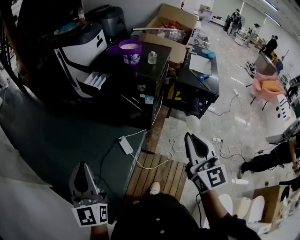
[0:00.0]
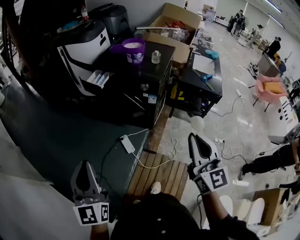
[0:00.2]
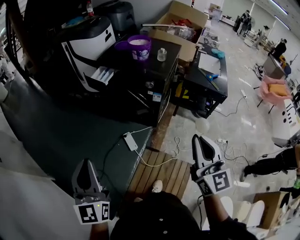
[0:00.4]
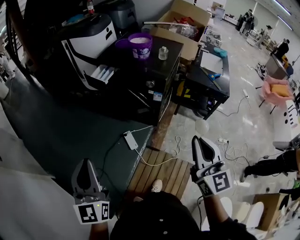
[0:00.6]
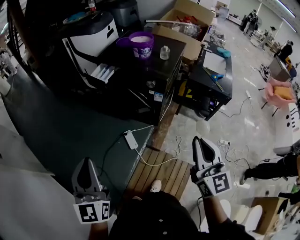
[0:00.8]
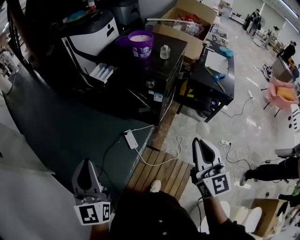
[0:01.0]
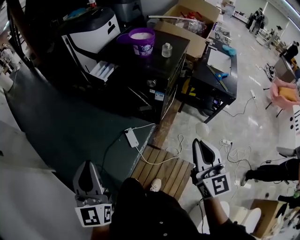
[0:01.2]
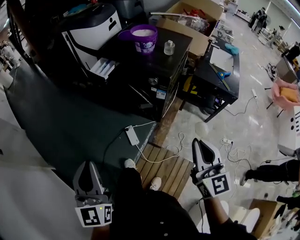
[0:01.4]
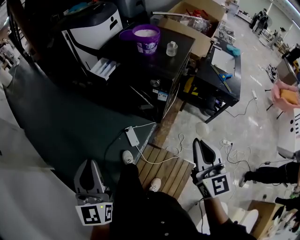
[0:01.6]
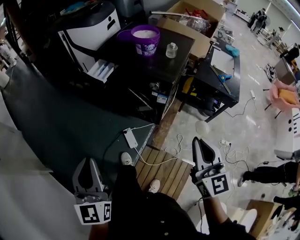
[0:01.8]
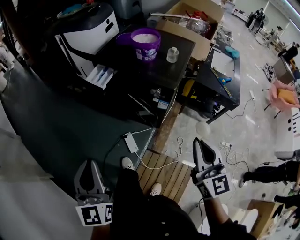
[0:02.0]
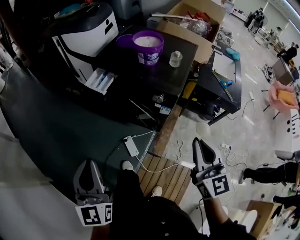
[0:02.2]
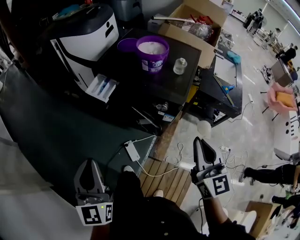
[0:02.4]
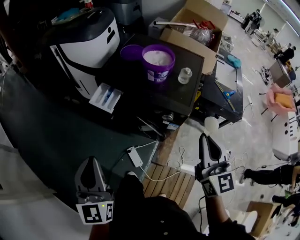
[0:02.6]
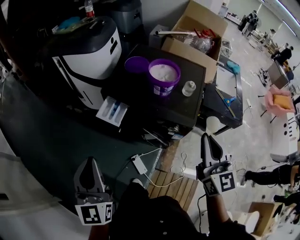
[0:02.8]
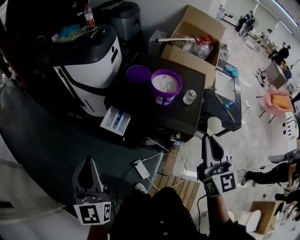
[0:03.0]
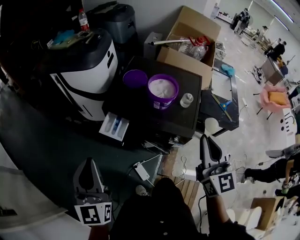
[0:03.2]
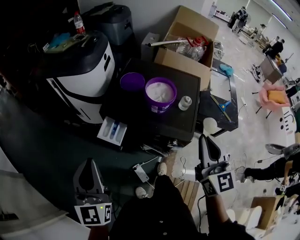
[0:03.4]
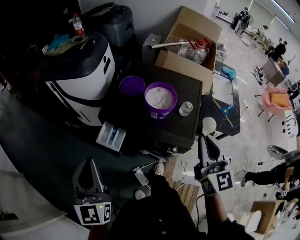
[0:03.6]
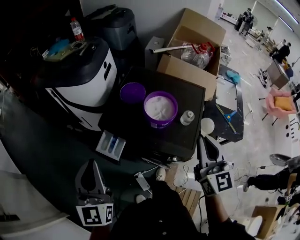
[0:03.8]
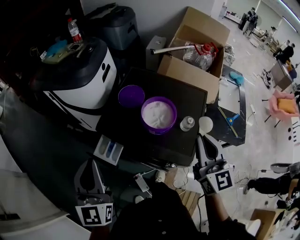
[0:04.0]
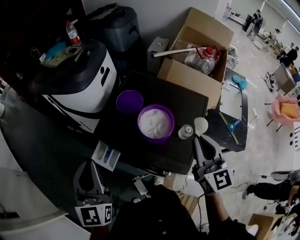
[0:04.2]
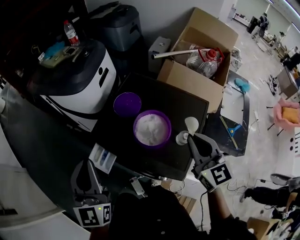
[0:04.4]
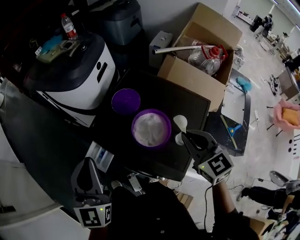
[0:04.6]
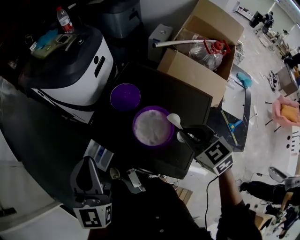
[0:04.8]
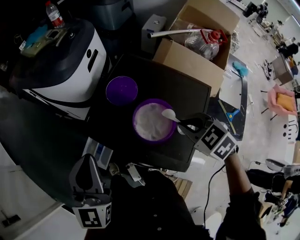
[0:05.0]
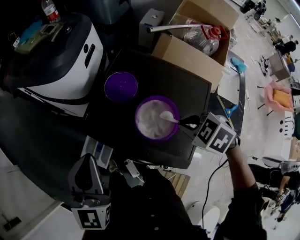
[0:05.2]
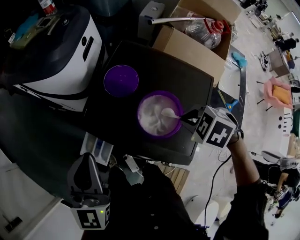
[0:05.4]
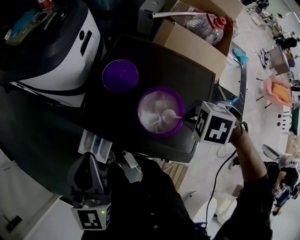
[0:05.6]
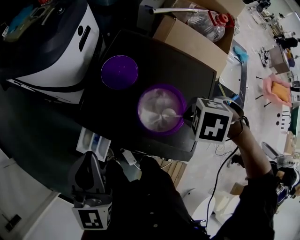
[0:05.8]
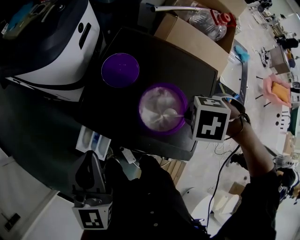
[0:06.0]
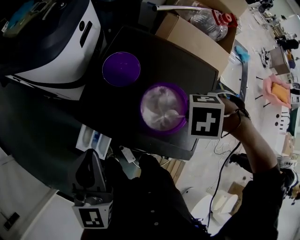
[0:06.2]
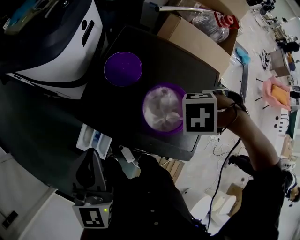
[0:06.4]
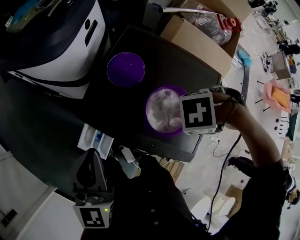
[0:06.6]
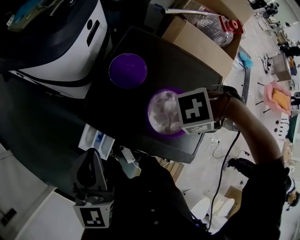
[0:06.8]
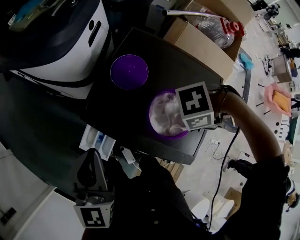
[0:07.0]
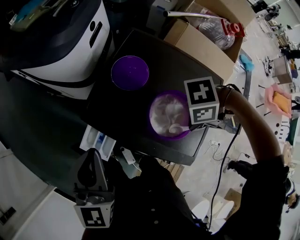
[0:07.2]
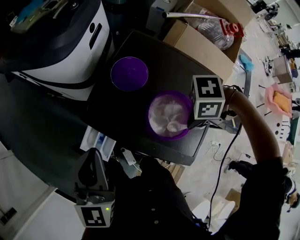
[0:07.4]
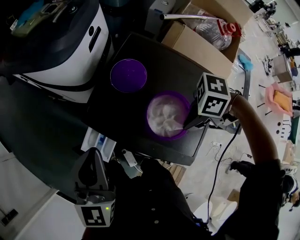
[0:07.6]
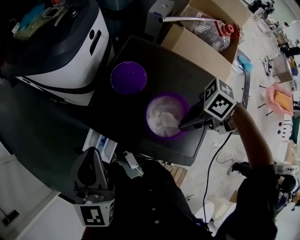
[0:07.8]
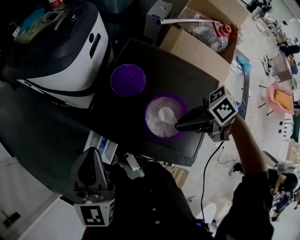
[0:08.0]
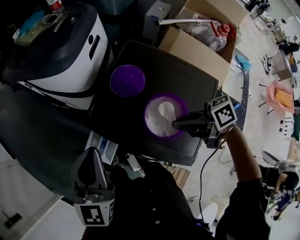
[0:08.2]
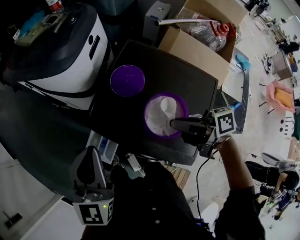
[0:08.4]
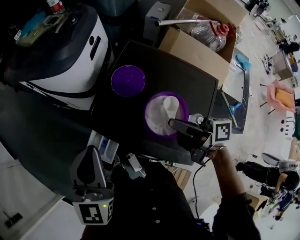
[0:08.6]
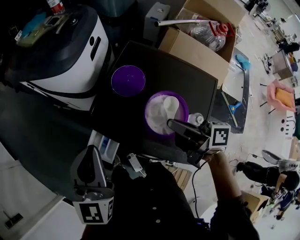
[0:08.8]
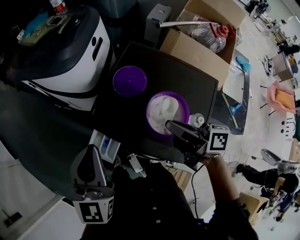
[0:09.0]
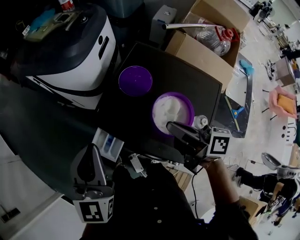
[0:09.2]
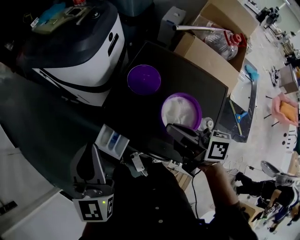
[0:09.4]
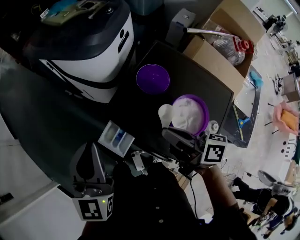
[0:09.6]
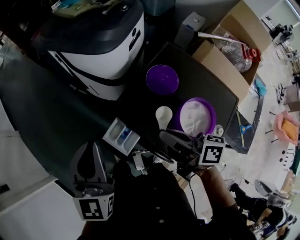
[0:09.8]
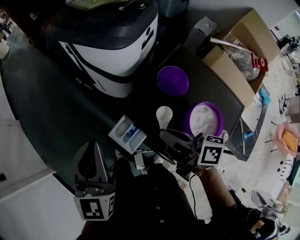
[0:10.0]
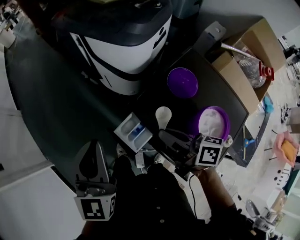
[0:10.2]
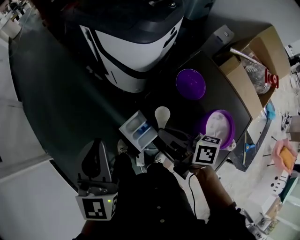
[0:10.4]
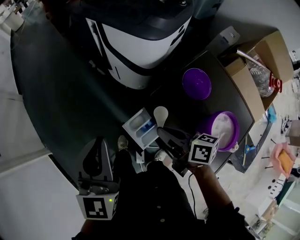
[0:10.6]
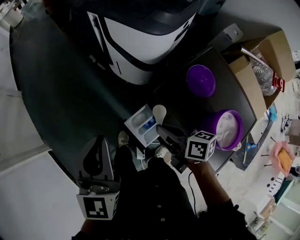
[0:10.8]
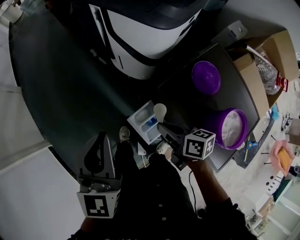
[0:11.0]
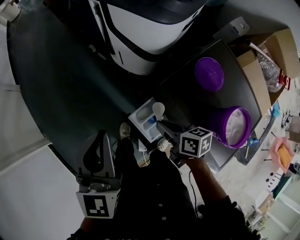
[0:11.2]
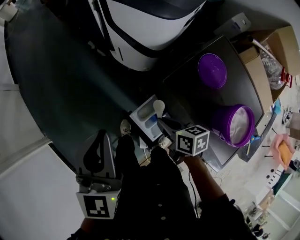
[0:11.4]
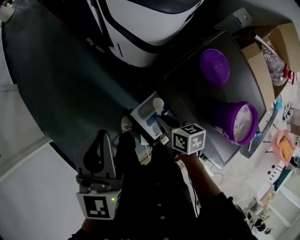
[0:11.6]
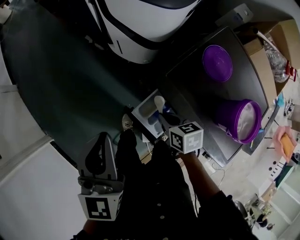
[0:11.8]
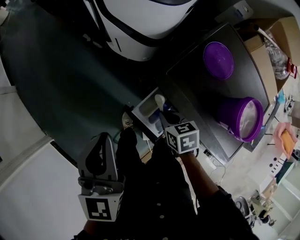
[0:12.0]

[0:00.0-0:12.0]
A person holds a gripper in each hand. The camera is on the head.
0:00.0 to 0:01.6: Both grippers travel together forward, about 10 cm.
0:01.6 to 0:03.0: The two grippers go roughly 30 cm forward.
0:03.0 to 0:04.4: The right gripper is displaced forward by some 25 cm; the left gripper travels forward and to the right by roughly 25 cm.
0:04.4 to 0:06.0: The left gripper travels downward by some 10 cm, while the right gripper heads downward, covering about 15 cm, and tilts its fingers some 70 degrees downward.
0:06.0 to 0:07.6: The right gripper points its fingers some 40 degrees further upward.
0:07.6 to 0:09.0: The right gripper travels upward by some 5 cm, and tips its fingers upward by about 40 degrees.
0:09.0 to 0:10.4: Both grippers move to the left, approximately 20 cm. The left gripper rotates about 20 degrees. Meanwhile the right gripper changes its angle by approximately 20 degrees.
0:10.4 to 0:12.0: The left gripper goes roughly 10 cm downward; the right gripper is displaced downward by about 20 cm, and tips its fingers downward by roughly 40 degrees.

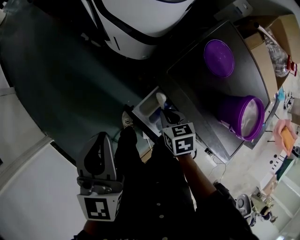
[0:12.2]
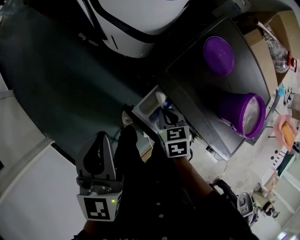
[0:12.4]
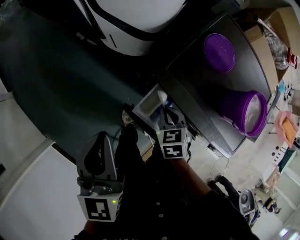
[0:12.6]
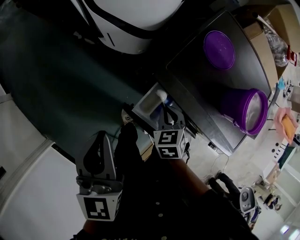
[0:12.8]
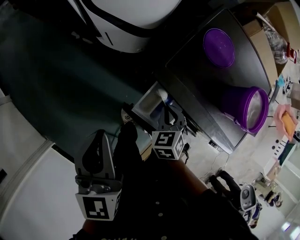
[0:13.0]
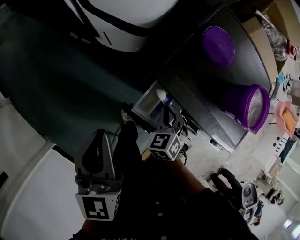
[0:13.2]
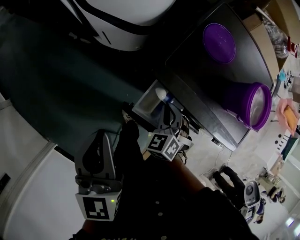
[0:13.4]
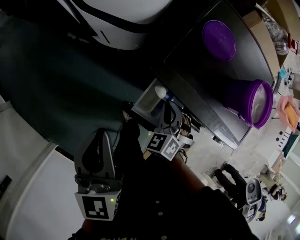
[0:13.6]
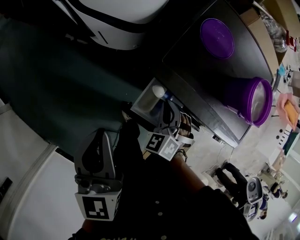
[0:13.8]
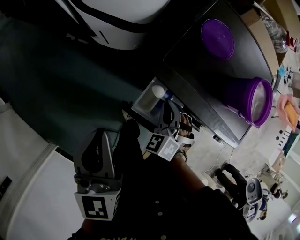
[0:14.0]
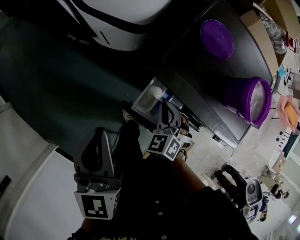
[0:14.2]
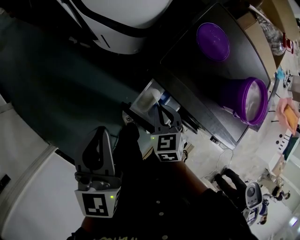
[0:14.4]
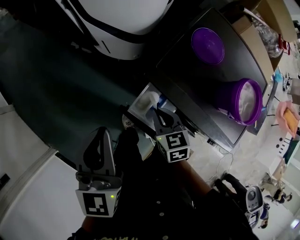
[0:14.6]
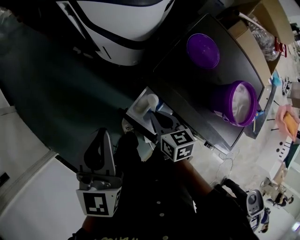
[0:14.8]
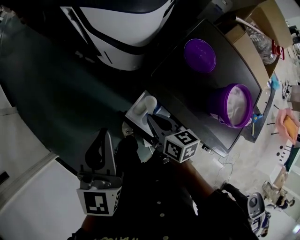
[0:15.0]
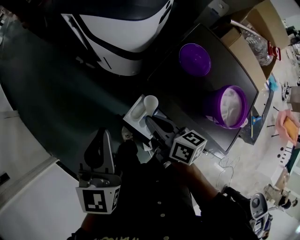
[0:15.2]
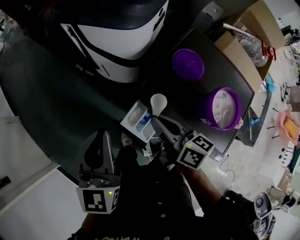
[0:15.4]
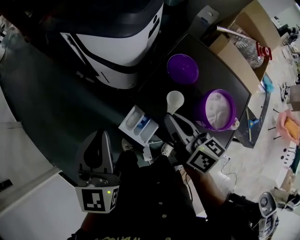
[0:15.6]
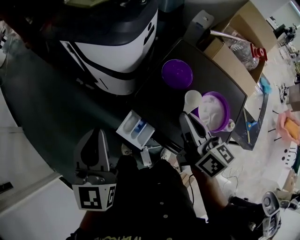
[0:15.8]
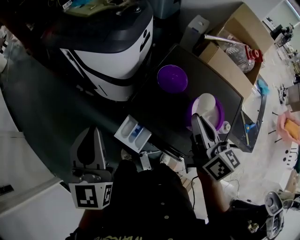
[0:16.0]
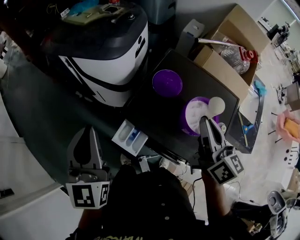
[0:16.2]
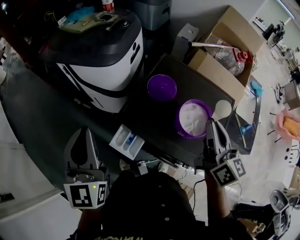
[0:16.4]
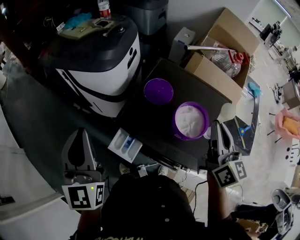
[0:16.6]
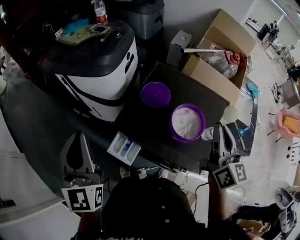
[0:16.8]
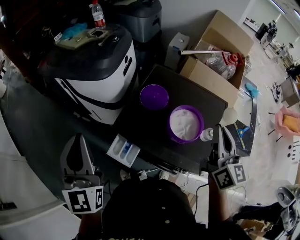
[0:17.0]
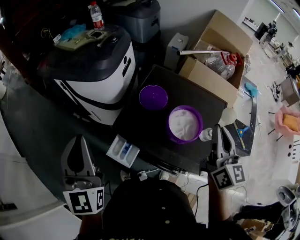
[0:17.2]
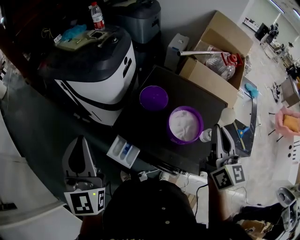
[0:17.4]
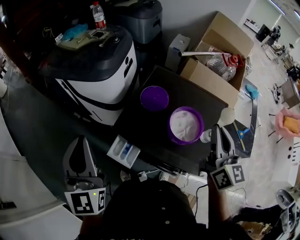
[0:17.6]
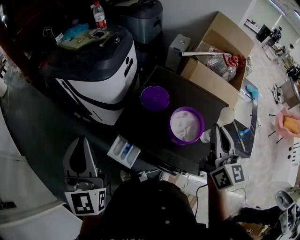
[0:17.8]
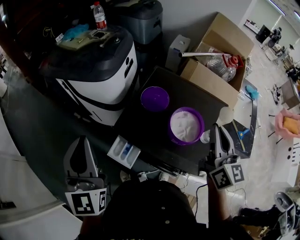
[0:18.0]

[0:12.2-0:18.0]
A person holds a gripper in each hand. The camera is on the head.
0:12.2 to 0:13.6: The right gripper turns by some 40 degrees.
0:13.6 to 0:15.0: Both grippers travel together upward, about 5 cm. The right gripper rotates about 70 degrees.
0:15.0 to 0:16.6: The left gripper goes approximately 15 cm upward and to the right; the right gripper heads to the right and upward, covering approximately 40 cm, and angles its fingers upward, by some 30 degrees.
0:16.6 to 0:18.0: The grippers make only small movements.

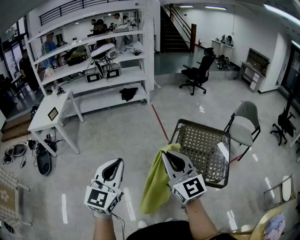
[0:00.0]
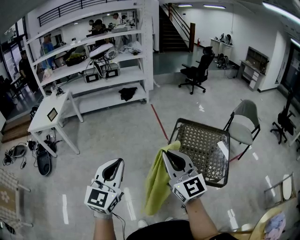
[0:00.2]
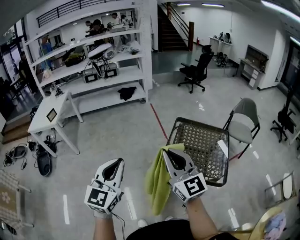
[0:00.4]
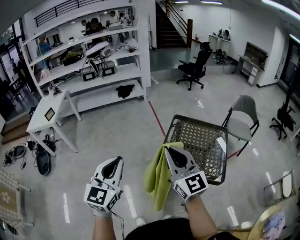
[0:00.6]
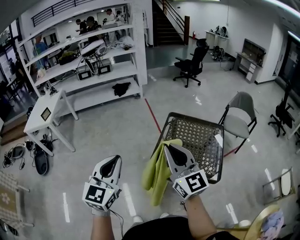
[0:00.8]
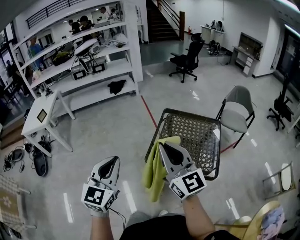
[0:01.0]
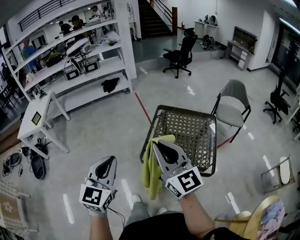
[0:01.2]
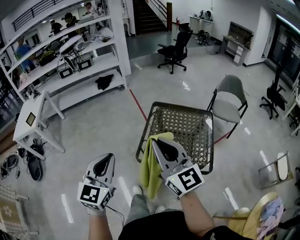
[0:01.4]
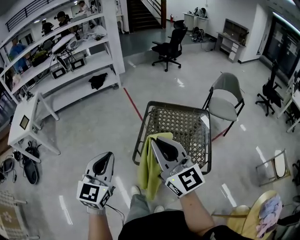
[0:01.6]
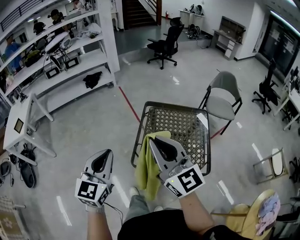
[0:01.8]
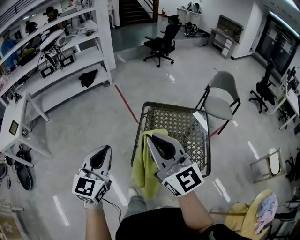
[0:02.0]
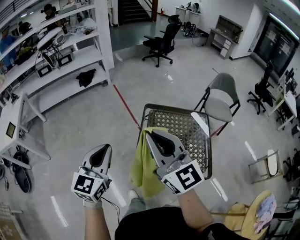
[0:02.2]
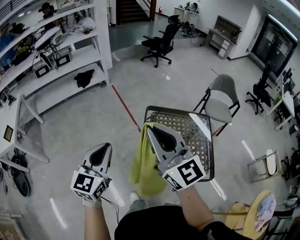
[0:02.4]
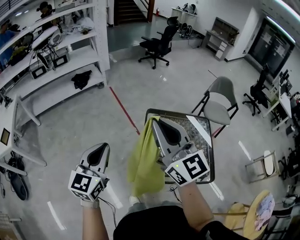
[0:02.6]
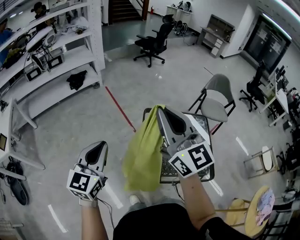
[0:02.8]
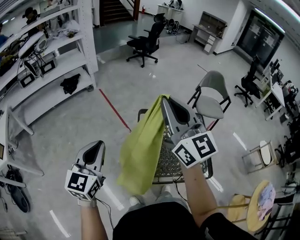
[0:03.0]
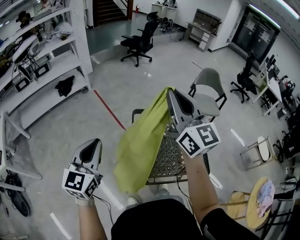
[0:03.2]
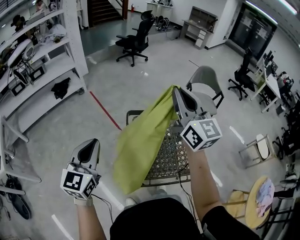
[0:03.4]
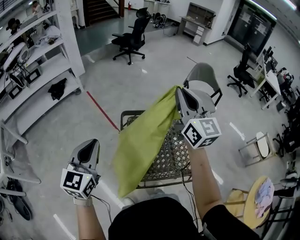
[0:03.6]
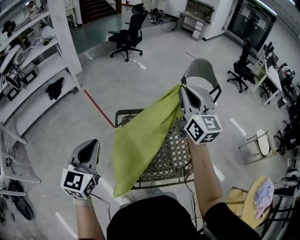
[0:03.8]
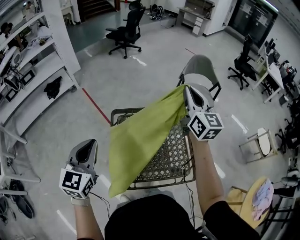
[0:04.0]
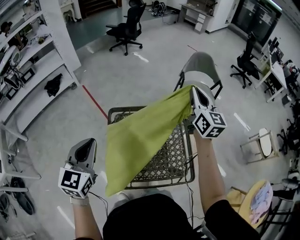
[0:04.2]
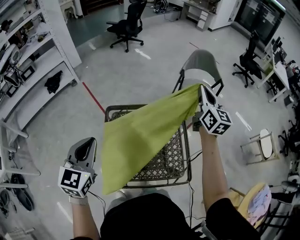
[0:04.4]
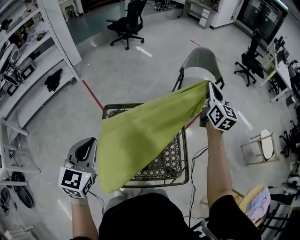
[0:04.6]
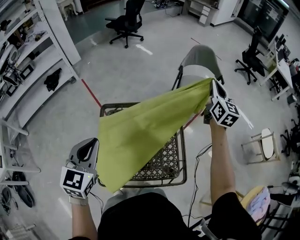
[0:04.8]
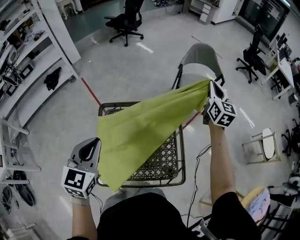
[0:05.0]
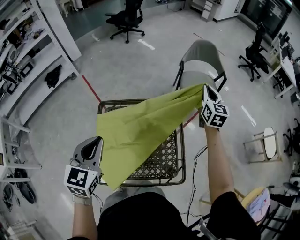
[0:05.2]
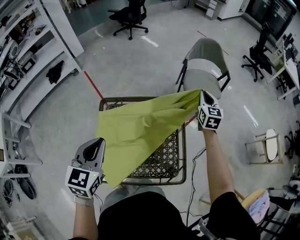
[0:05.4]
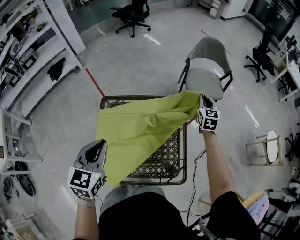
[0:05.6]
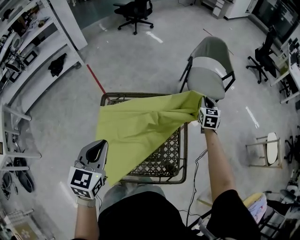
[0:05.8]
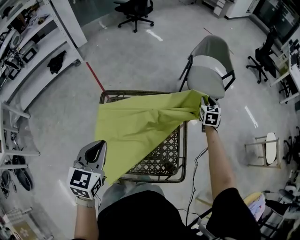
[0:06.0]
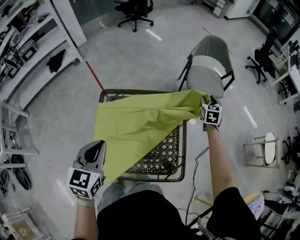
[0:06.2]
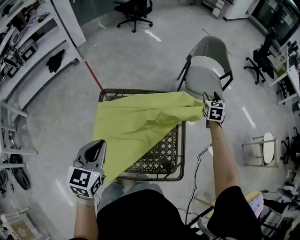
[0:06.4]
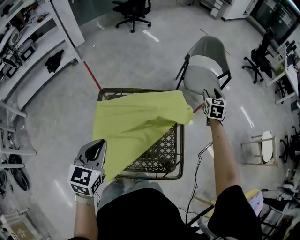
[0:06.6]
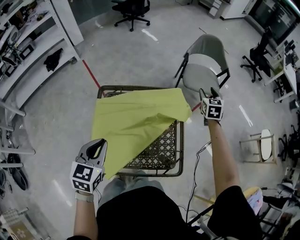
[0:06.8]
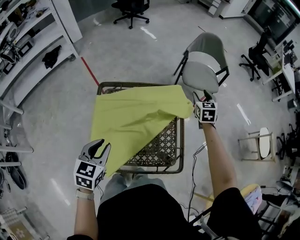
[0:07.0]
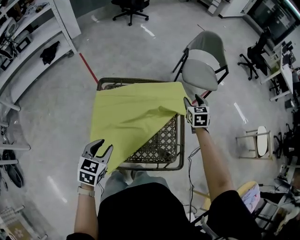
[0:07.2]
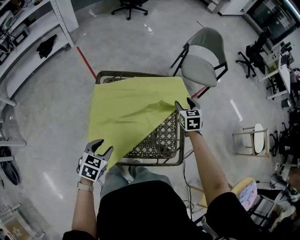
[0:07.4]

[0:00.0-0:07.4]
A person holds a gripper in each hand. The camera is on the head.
0:00.0 to 0:01.4: Both grippers move to the right, about 15 cm.
0:01.4 to 0:03.0: Both grippers move forward, about 30 cm.
0:03.0 to 0:04.4: The left gripper goes about 25 cm to the right and forward. Meanwhile the right gripper heads to the right and forward, covering approximately 50 cm, and changes its angle by approximately 30 degrees.
0:04.4 to 0:06.0: The right gripper shifts roughly 30 cm downward and to the right, tips its fingers downward by approximately 30 degrees, and opens up. Meanwhile the left gripper moves to the right and downward, about 10 cm.
0:06.0 to 0:07.4: The right gripper goes about 20 cm backward and to the left, and opens, while the left gripper heads downward and backward, covering approximately 20 cm, rotates roughly 20 degrees, and opens.
